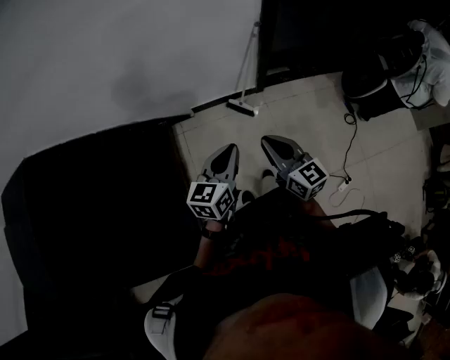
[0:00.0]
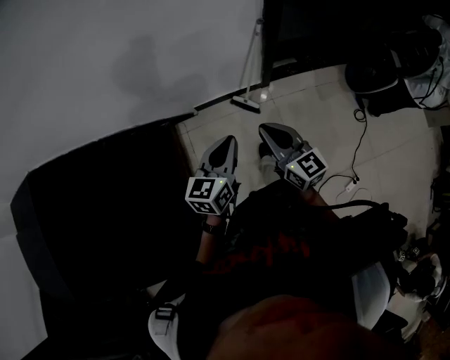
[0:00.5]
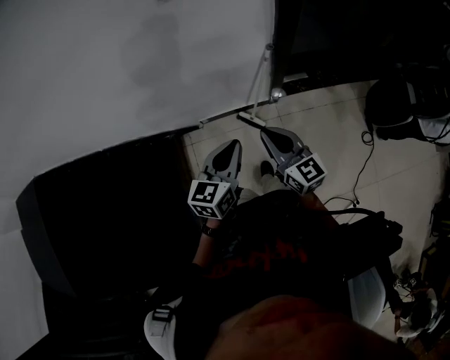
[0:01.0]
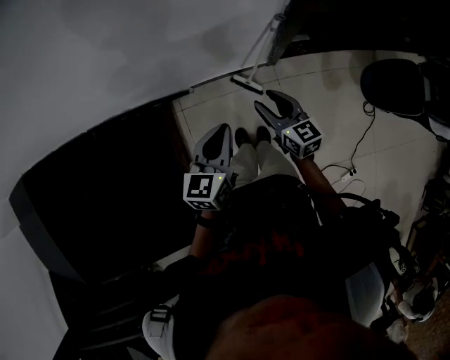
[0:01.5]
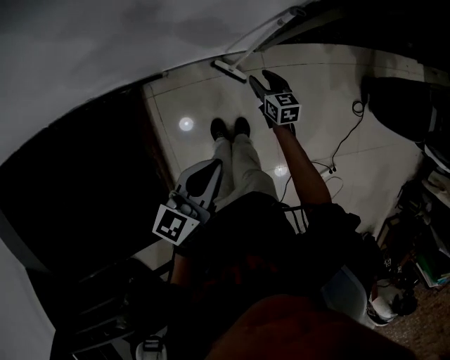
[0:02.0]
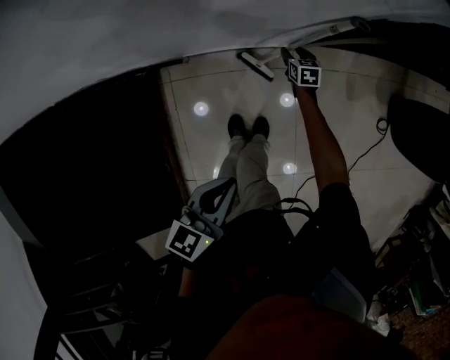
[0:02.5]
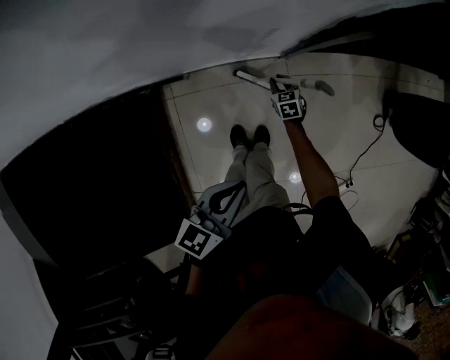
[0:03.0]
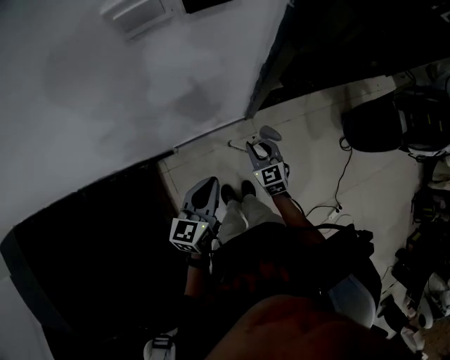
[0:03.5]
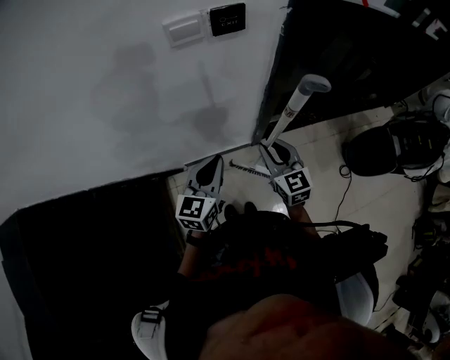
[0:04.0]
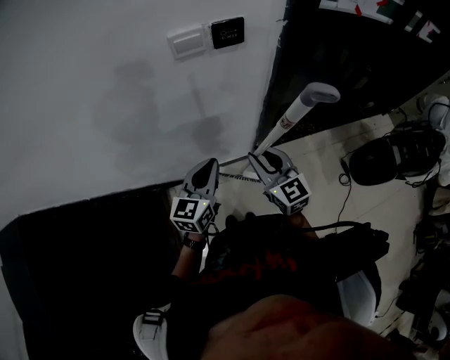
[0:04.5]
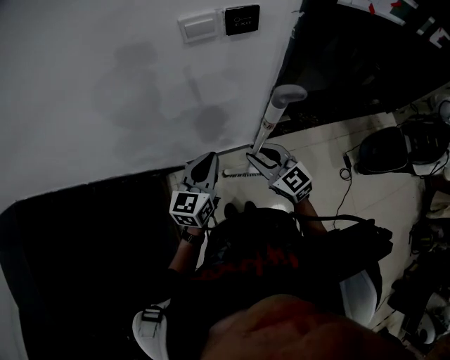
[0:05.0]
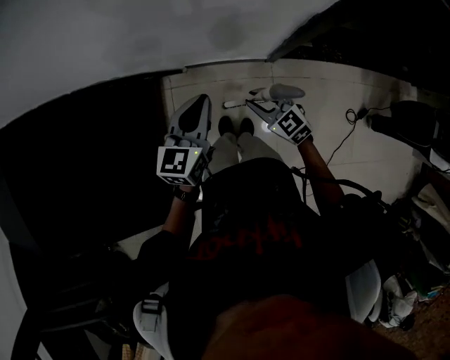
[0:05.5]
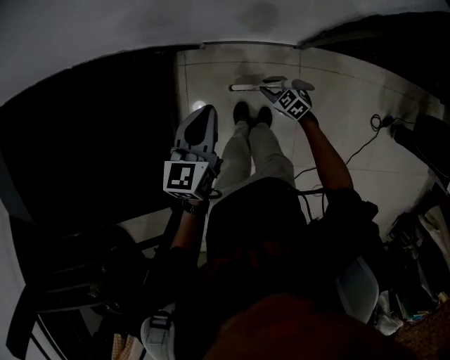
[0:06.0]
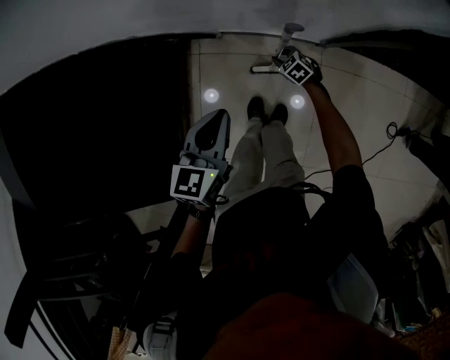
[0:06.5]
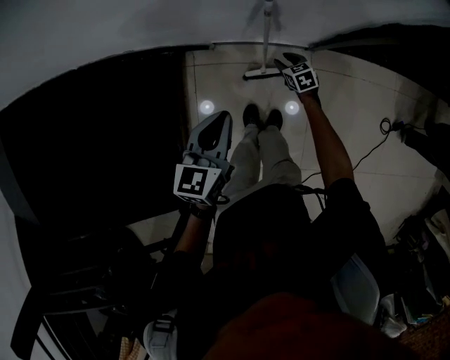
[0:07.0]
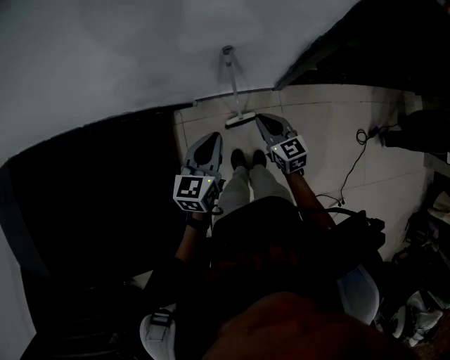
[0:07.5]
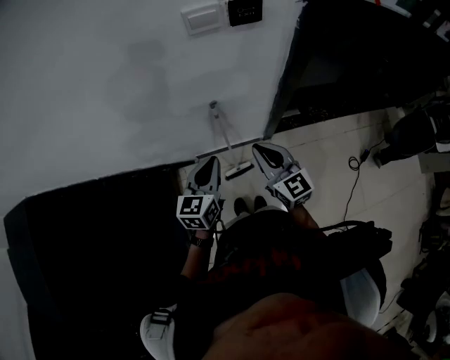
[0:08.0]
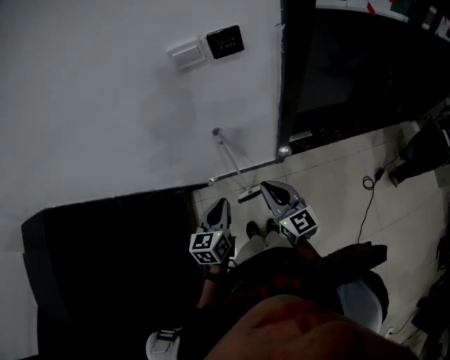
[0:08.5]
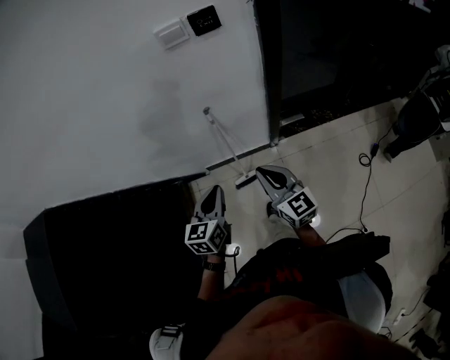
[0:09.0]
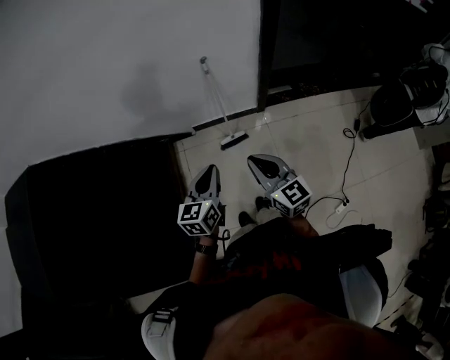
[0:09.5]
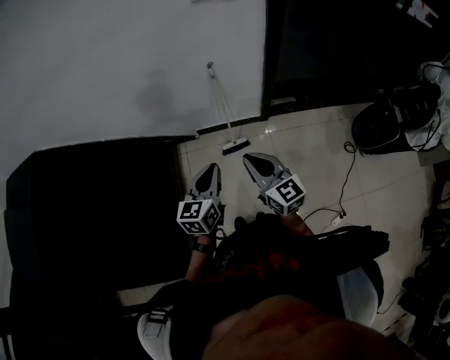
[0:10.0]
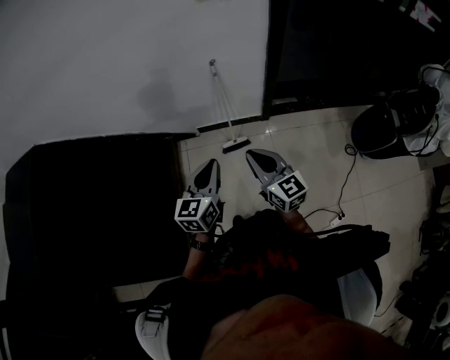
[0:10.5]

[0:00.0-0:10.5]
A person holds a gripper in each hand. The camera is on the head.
0:00.0 to 0:02.0: The left gripper is displaced forward and downward by about 35 cm, while the right gripper is displaced forward and downward by approximately 70 cm, tilts its fingers some 30 degrees downward, and opens.
0:02.0 to 0:04.0: The right gripper heads upward, covering roughly 40 cm, turns by roughly 30 degrees, and closes. Meanwhile the left gripper moves upward, about 15 cm, and changes its angle by some 30 degrees.
0:04.0 to 0:06.5: The left gripper heads downward, covering some 25 cm, and rotates roughly 30 degrees. The right gripper goes about 60 cm downward, and points its fingers approximately 40 degrees further downward.
0:06.5 to 0:08.5: The right gripper shifts about 60 cm upward, tips its fingers upward by approximately 50 degrees, and closes, while the left gripper is displaced upward by some 20 cm.
0:08.5 to 0:10.5: Both grippers move backward, some 30 cm.

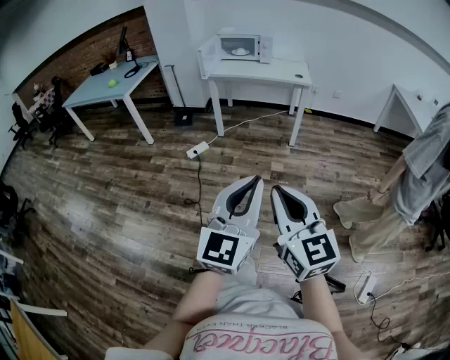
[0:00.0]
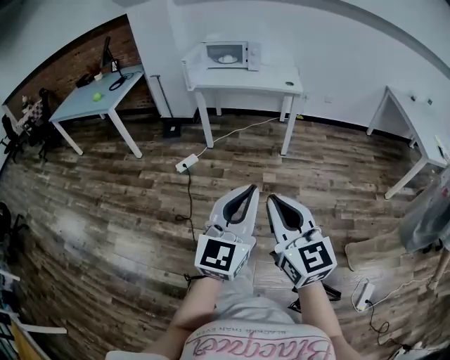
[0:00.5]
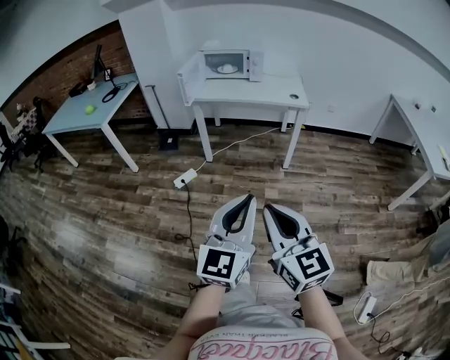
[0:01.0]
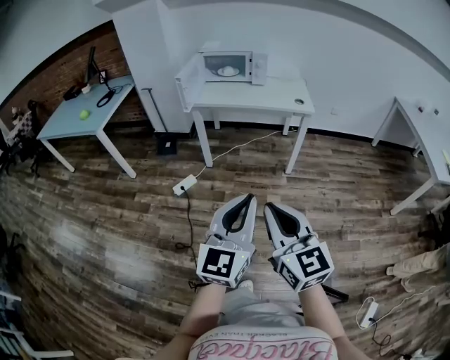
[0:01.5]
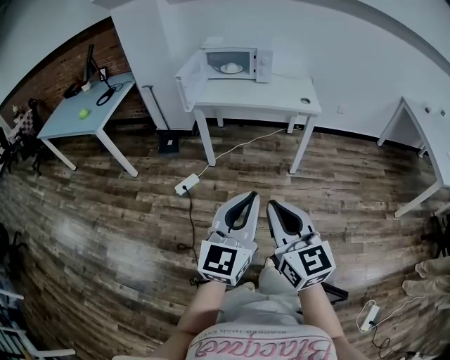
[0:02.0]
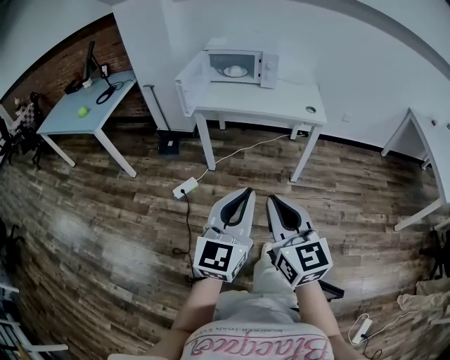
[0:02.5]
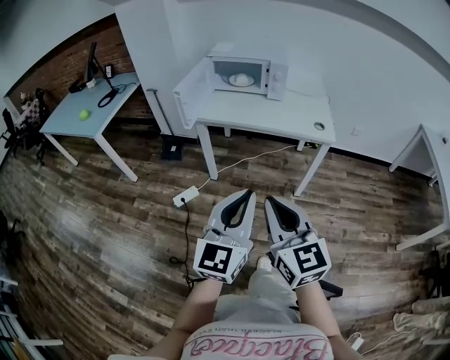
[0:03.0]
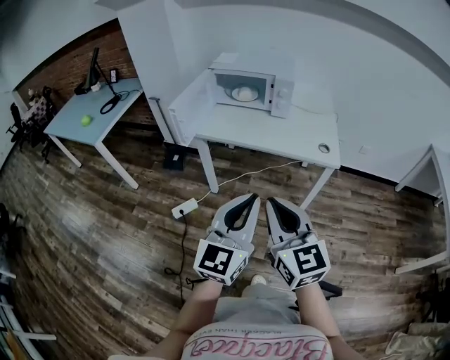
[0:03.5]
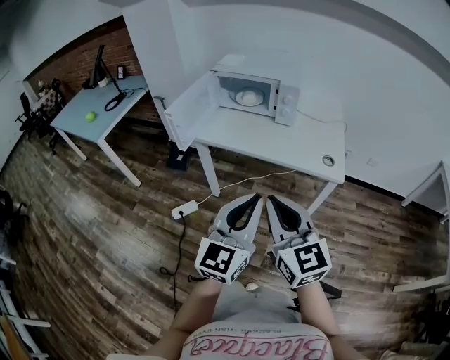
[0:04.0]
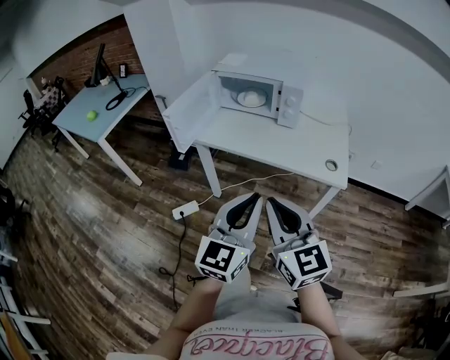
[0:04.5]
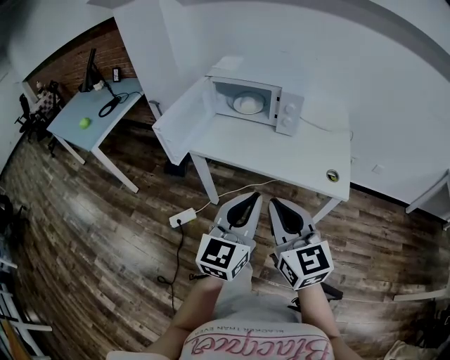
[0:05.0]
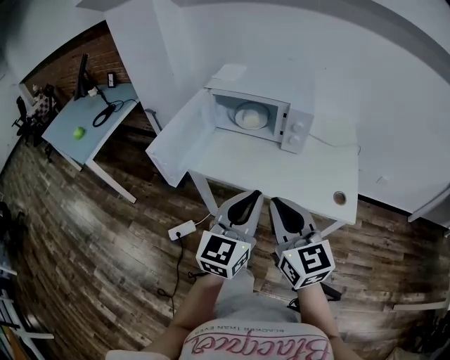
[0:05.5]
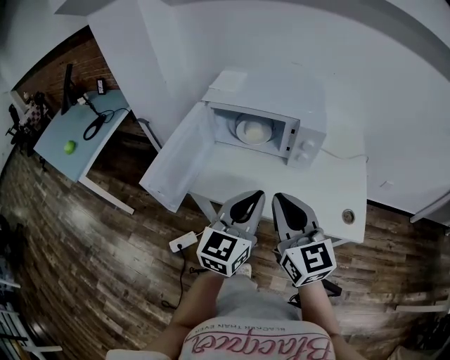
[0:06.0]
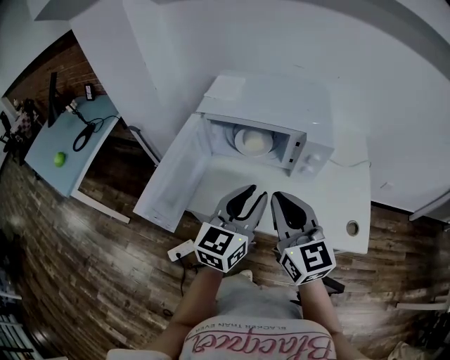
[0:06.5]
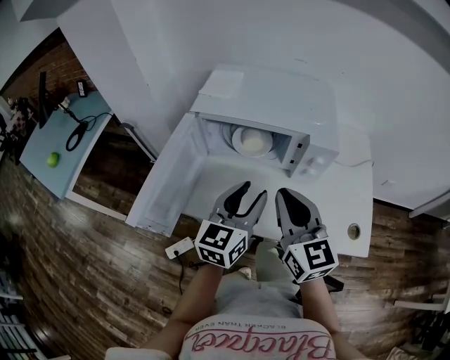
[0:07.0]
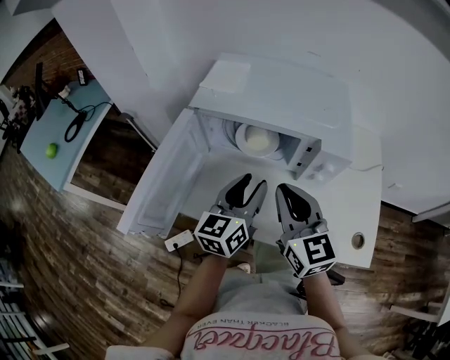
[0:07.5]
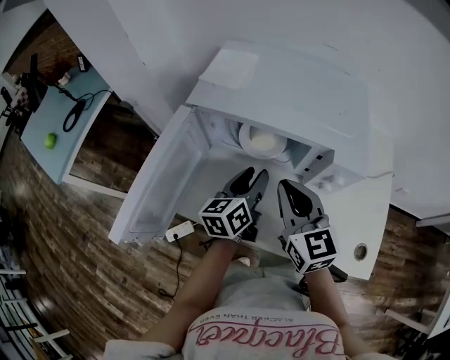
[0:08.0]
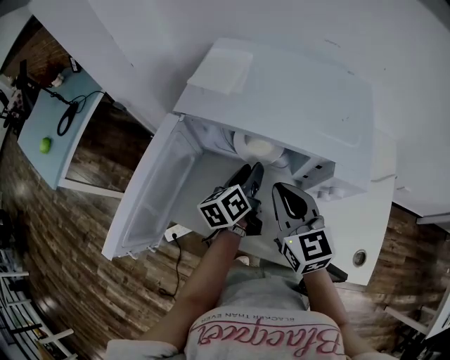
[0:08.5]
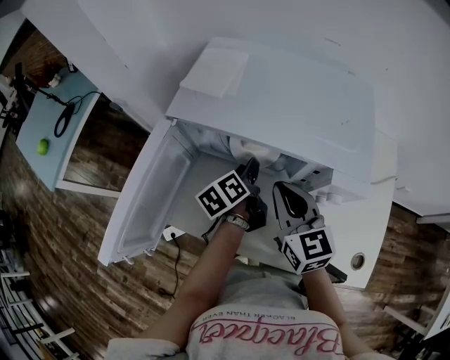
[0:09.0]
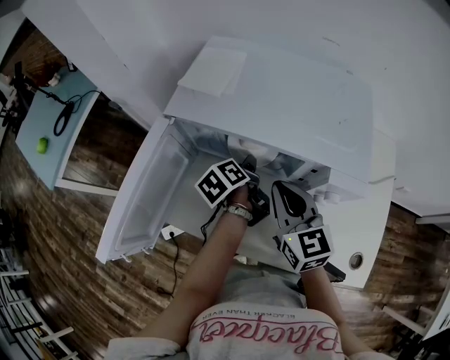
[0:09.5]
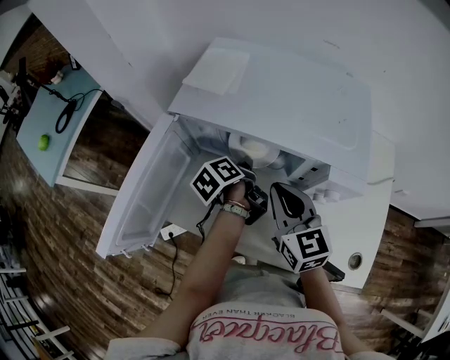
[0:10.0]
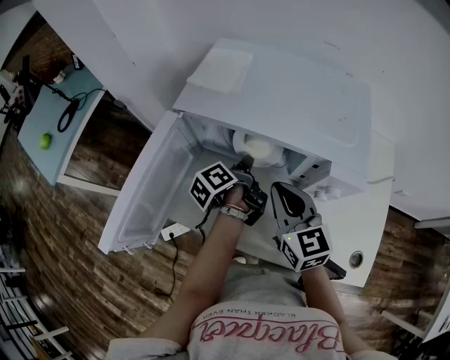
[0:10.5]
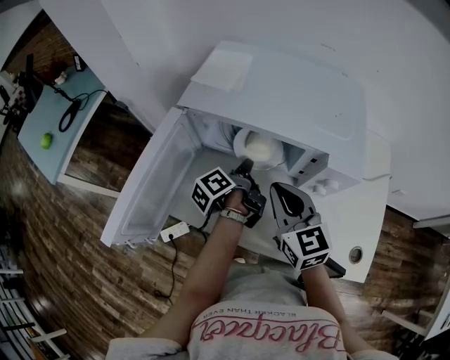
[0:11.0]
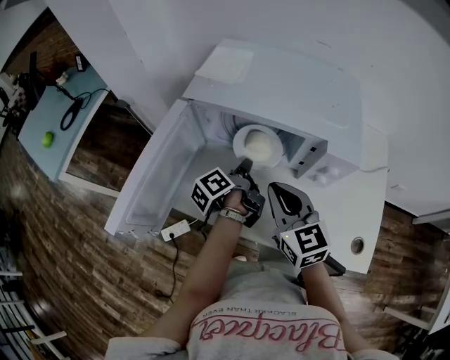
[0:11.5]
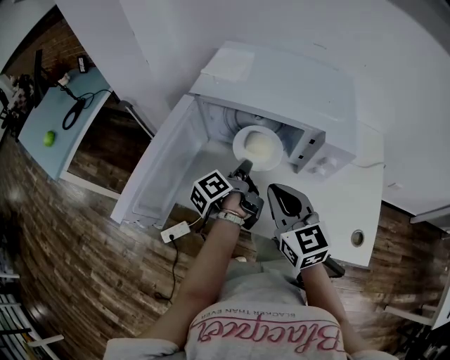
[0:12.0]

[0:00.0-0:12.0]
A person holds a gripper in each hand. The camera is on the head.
0:00.0 to 0:02.0: The two grippers go roughly 35 cm forward.
0:02.0 to 0:04.0: Both grippers travel together forward, about 35 cm.
0:04.0 to 0:06.0: The grippers both shift forward by about 30 cm.
0:06.0 to 0:08.0: Both grippers move forward and downward, some 25 cm. The left gripper turns by some 40 degrees, and opens.
0:08.0 to 0:10.0: The right gripper moves about 5 cm, while the left gripper heads forward and downward, covering approximately 10 cm, swivels about 50 degrees, and closes.
0:10.0 to 0:12.0: Both grippers move backward, about 10 cm. The left gripper changes its angle by some 20 degrees.

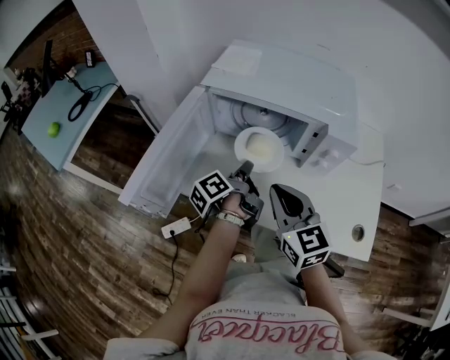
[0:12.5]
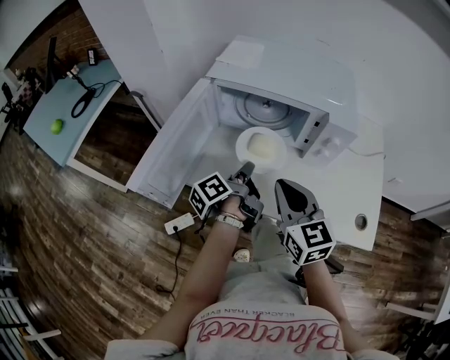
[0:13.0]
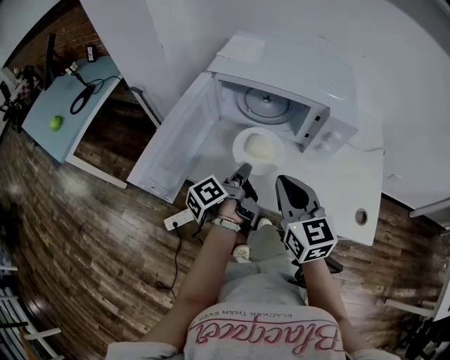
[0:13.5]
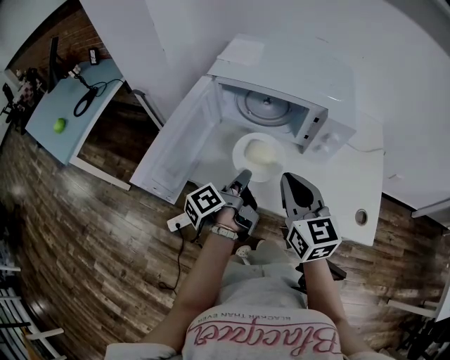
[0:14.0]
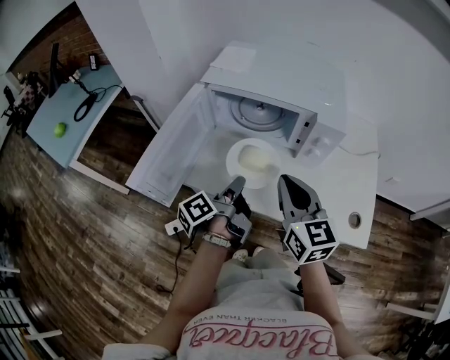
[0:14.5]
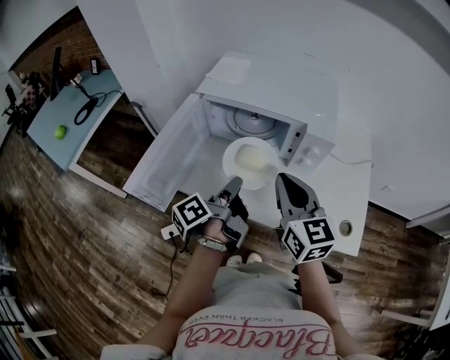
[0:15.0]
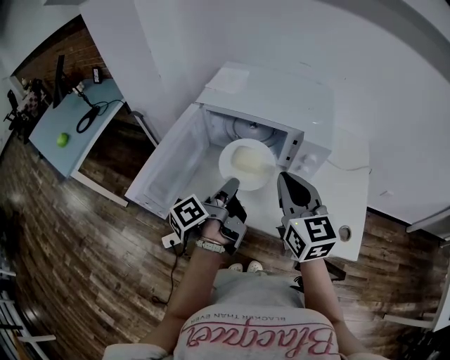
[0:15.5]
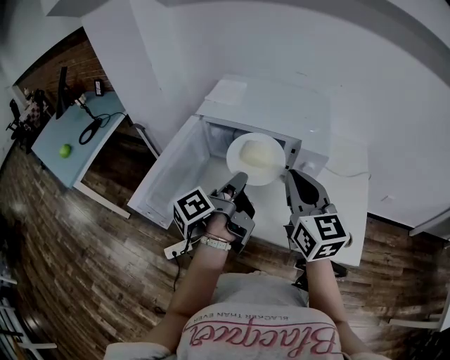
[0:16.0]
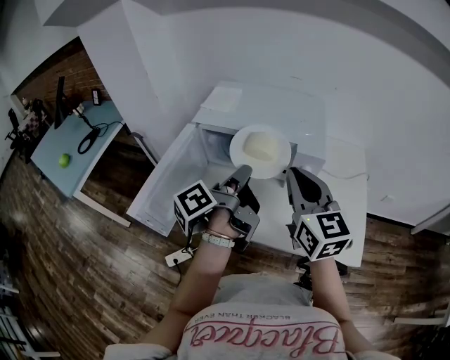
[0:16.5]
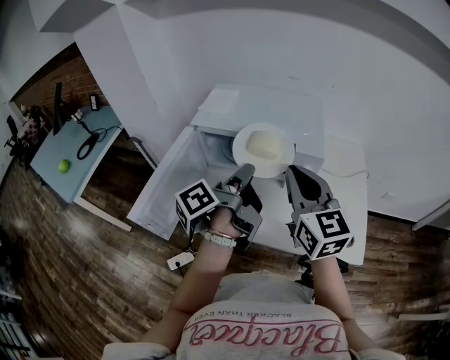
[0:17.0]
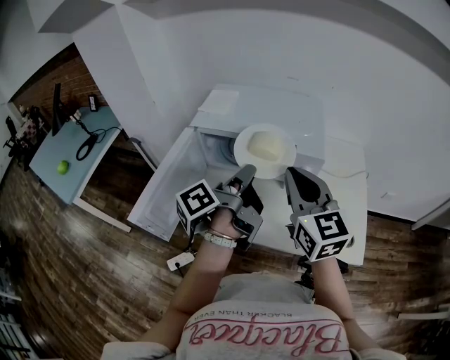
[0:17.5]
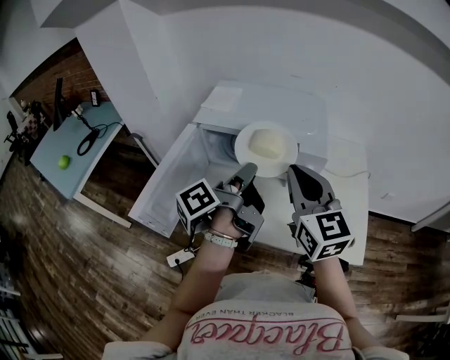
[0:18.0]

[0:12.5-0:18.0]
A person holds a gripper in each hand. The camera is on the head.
0:12.5 to 0:14.5: The right gripper moves approximately 5 cm. The left gripper travels backward by about 10 cm.
0:14.5 to 0:16.0: Both grippers move upward, roughly 10 cm.
0:16.0 to 0:18.0: The left gripper changes place by roughly 5 cm.
